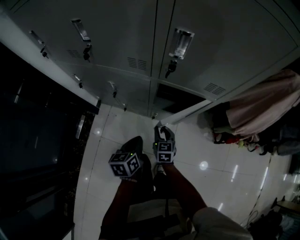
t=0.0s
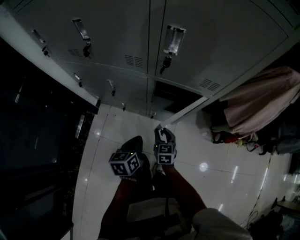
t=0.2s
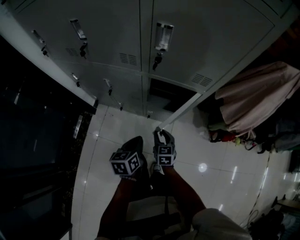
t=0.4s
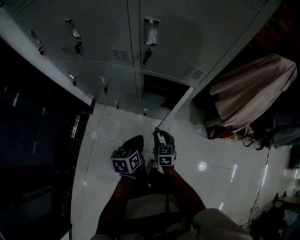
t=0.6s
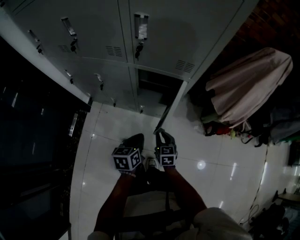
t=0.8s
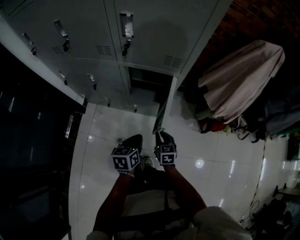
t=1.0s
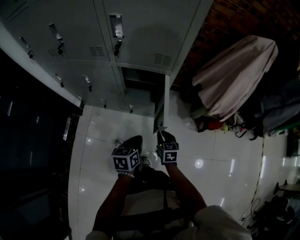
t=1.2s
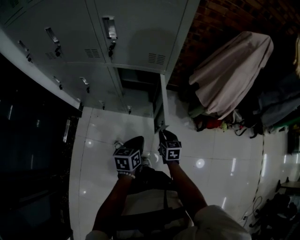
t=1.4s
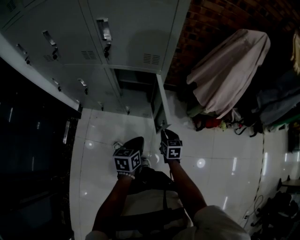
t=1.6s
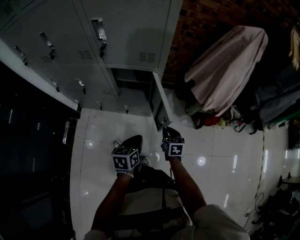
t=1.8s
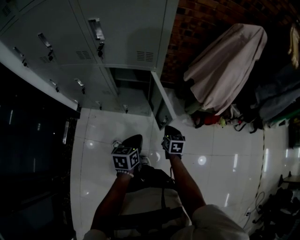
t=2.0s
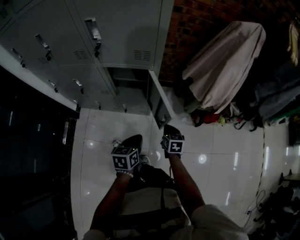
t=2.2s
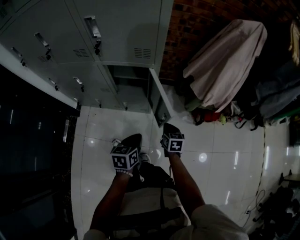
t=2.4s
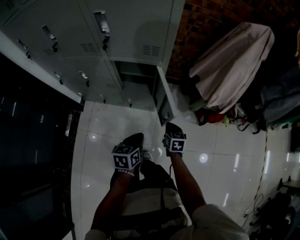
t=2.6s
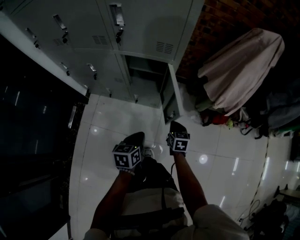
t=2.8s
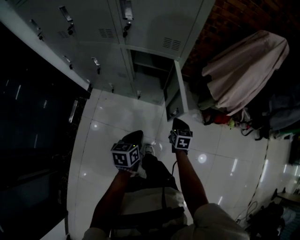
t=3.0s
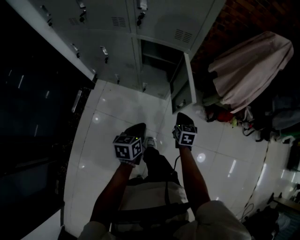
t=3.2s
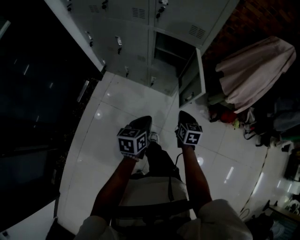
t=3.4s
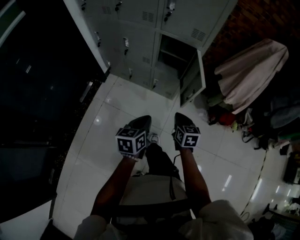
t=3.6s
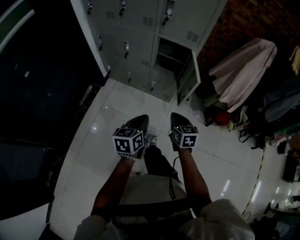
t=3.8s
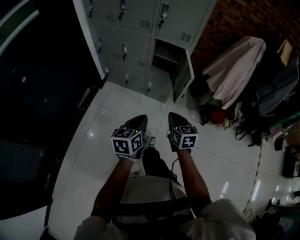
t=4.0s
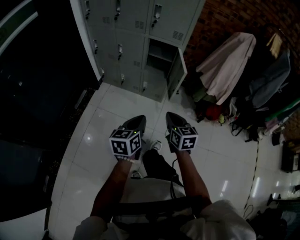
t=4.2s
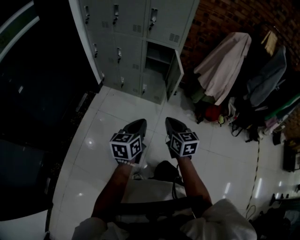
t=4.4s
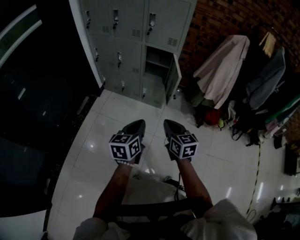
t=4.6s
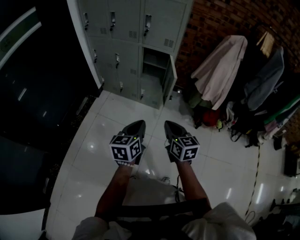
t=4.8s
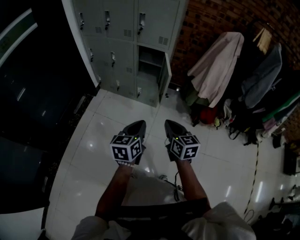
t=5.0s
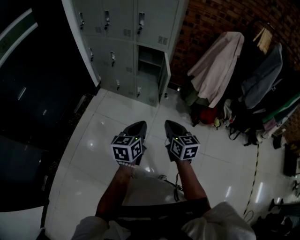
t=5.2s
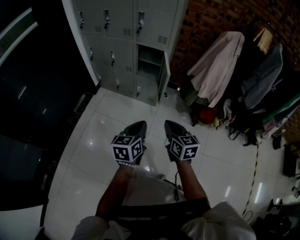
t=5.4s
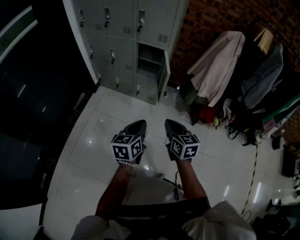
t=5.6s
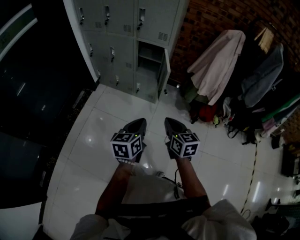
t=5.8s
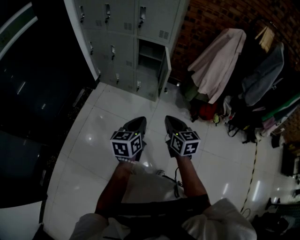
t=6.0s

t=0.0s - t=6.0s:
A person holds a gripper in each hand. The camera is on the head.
t=0.0s - t=1.6s: The grippers both shift to the right and backward by about 25 cm.
t=1.6s - t=3.0s: The left gripper goes approximately 5 cm backward.
t=3.0s - t=4.4s: The grippers both shift backward and upward by roughly 40 cm. The right gripper rotates approximately 30 degrees; the left gripper rotates roughly 20 degrees.
t=4.4s - t=6.0s: Both grippers move to the right, about 10 cm.

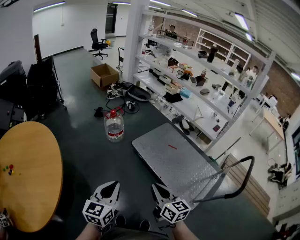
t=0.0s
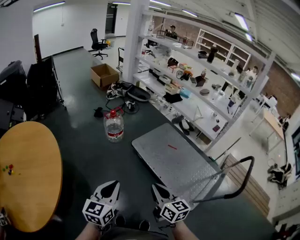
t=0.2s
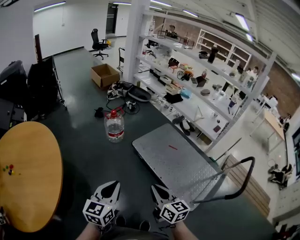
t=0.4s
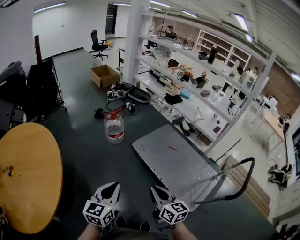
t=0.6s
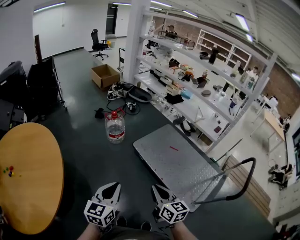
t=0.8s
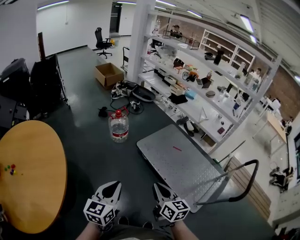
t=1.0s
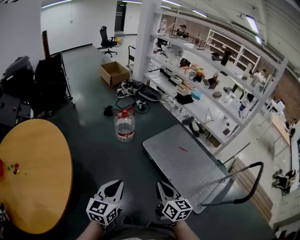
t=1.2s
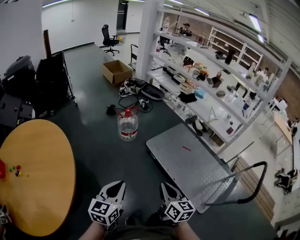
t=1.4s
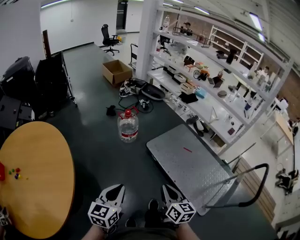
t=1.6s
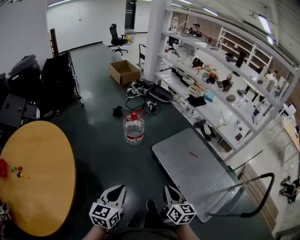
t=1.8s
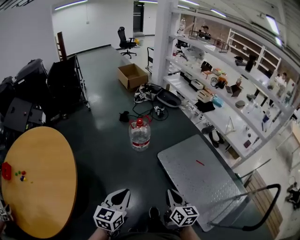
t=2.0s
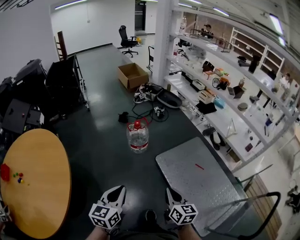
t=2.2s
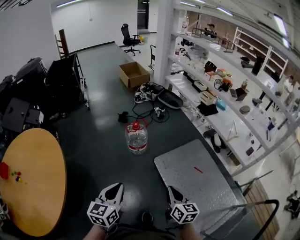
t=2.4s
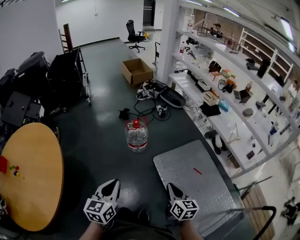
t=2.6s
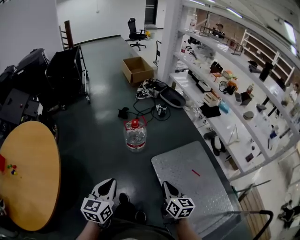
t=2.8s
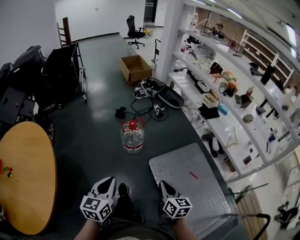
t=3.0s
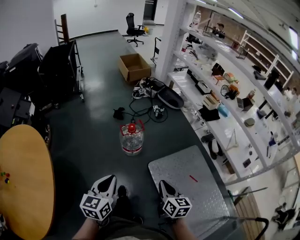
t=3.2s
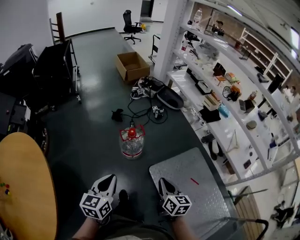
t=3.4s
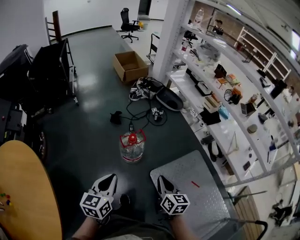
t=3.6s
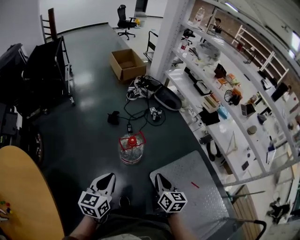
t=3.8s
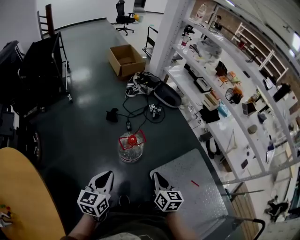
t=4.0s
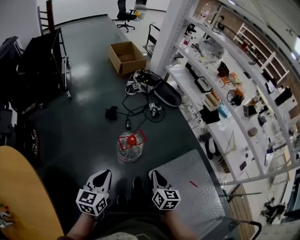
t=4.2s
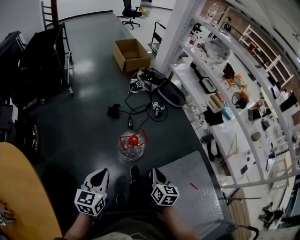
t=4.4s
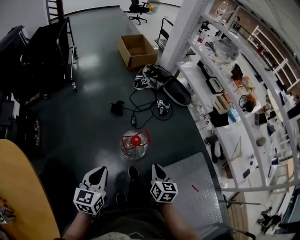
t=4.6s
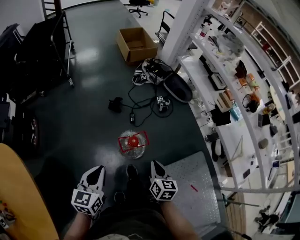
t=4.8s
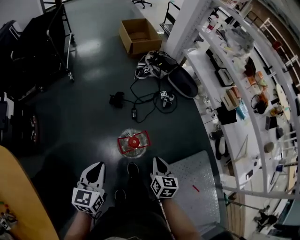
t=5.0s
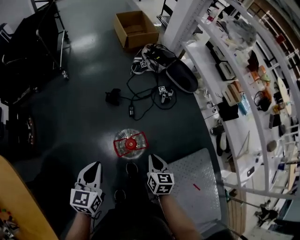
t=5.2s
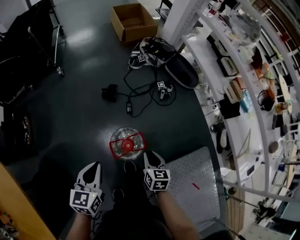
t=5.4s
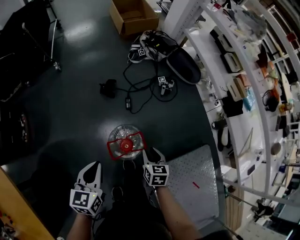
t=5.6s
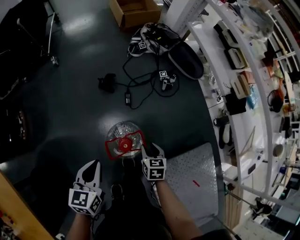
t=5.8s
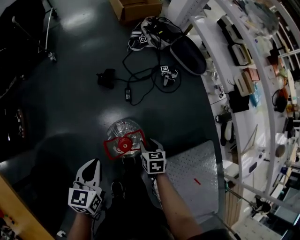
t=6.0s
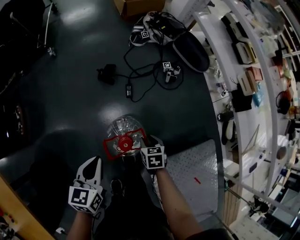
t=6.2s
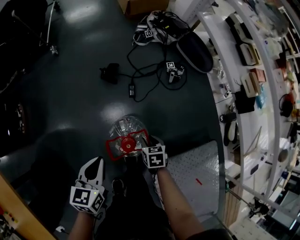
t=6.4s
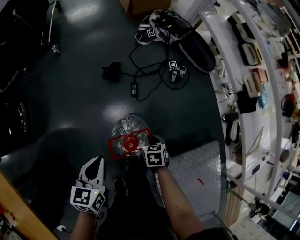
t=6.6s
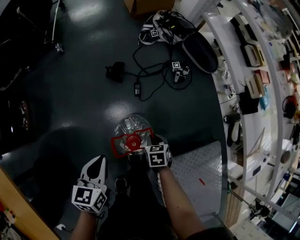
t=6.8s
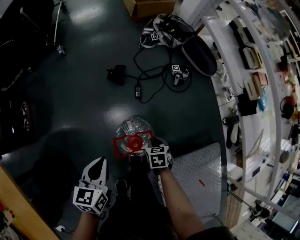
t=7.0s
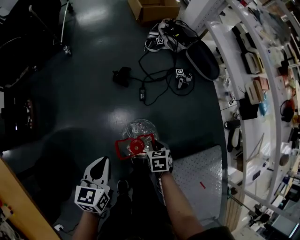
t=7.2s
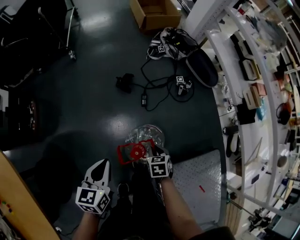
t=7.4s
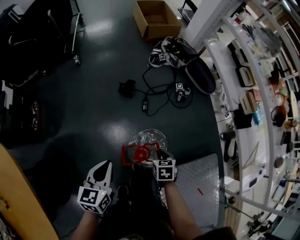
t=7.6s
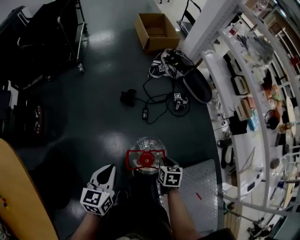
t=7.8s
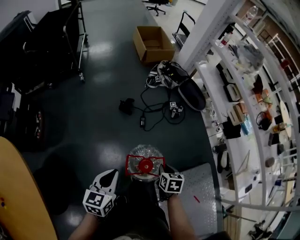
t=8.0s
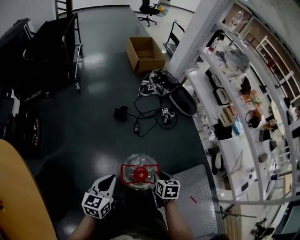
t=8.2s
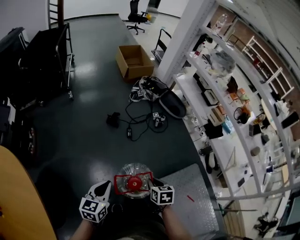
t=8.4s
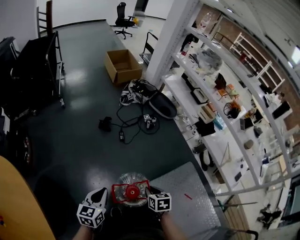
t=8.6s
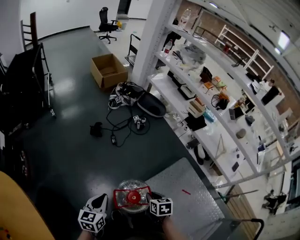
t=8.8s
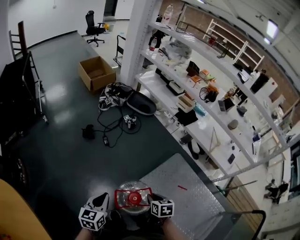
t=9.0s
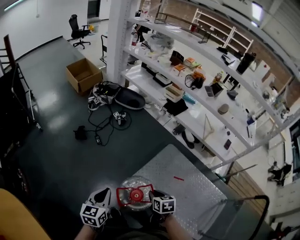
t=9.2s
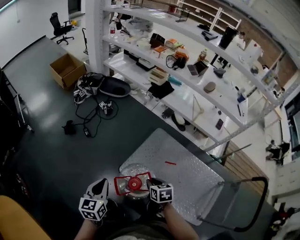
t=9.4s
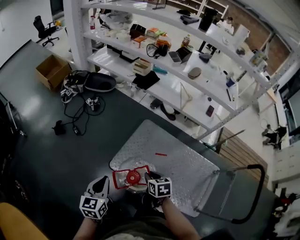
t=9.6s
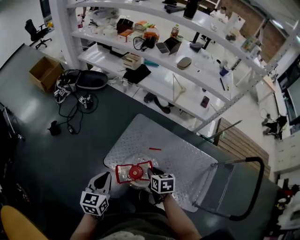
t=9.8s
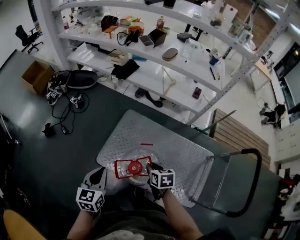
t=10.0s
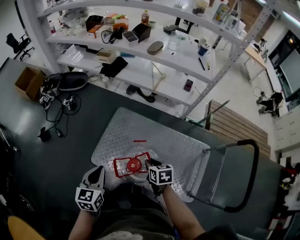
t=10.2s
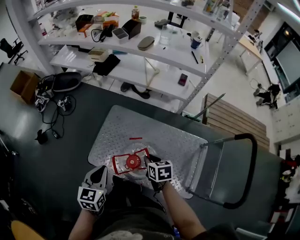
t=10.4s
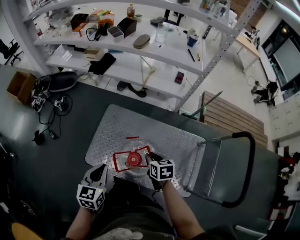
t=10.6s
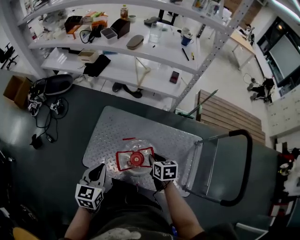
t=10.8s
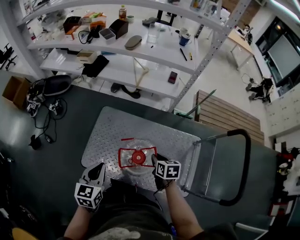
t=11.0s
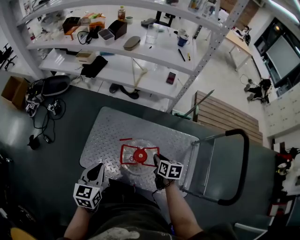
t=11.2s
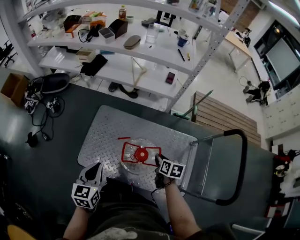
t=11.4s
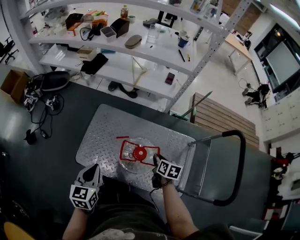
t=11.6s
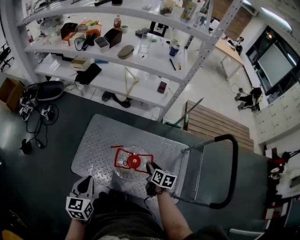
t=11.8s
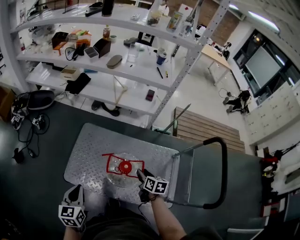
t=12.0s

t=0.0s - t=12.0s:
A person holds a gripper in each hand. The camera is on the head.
t=0.0s - t=1.6s: The left gripper moves to the left and forward, some 10 cm. The right gripper is displaced forward, to the left and downward by approximately 10 cm.
t=1.6s - t=3.0s: The grippers both shift forward by some 30 cm.
t=3.0s - t=4.4s: Both grippers move forward and to the left, about 35 cm.
t=4.4s - t=6.0s: The right gripper shifts some 40 cm downward and forward, changes its angle by about 30 degrees, and opens its fingers, while the left gripper moves forward and downward, about 30 cm.
t=6.0s - t=7.6s: The left gripper moves upward and to the left, about 10 cm, while the right gripper travels upward by some 10 cm.
t=7.6s - t=9.0s: The left gripper goes roughly 25 cm backward and to the right, and changes its angle by approximately 30 degrees. Meanwhile the right gripper goes about 40 cm backward, upward and to the right, and rotates roughly 30 degrees.
t=9.0s - t=10.4s: Both grippers are carried to the right, approximately 50 cm. The left gripper rotates roughly 30 degrees; the right gripper swivels some 30 degrees.
t=10.4s - t=12.0s: The right gripper heads to the right, covering approximately 15 cm, and changes its angle by roughly 30 degrees.

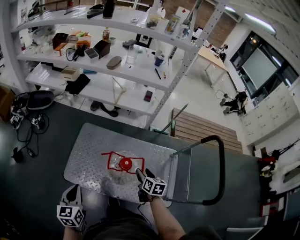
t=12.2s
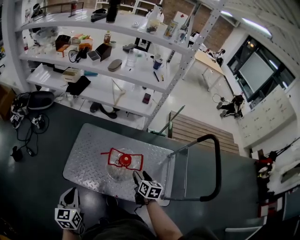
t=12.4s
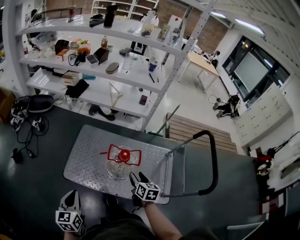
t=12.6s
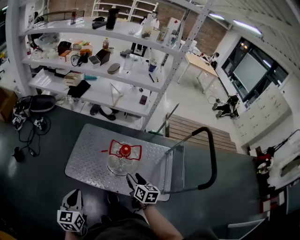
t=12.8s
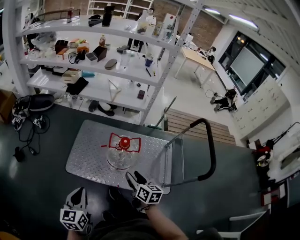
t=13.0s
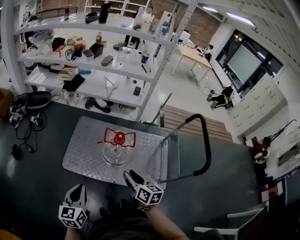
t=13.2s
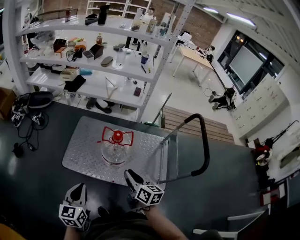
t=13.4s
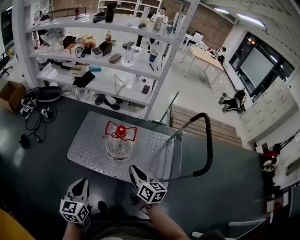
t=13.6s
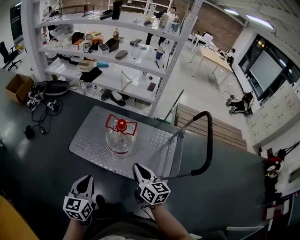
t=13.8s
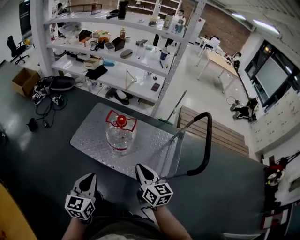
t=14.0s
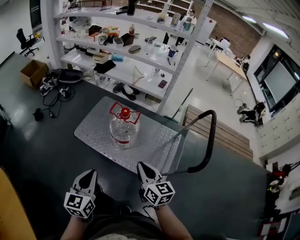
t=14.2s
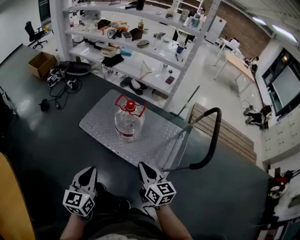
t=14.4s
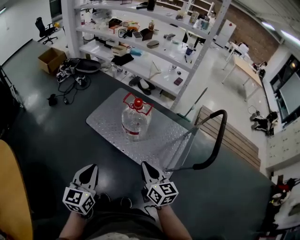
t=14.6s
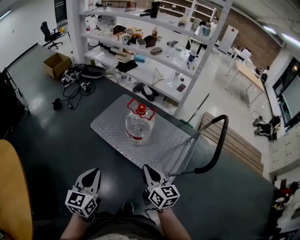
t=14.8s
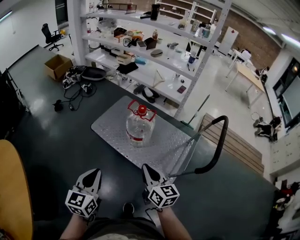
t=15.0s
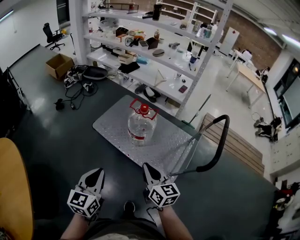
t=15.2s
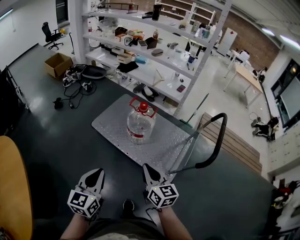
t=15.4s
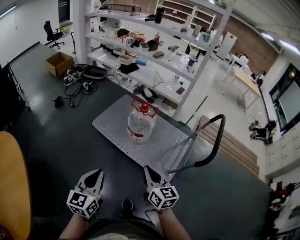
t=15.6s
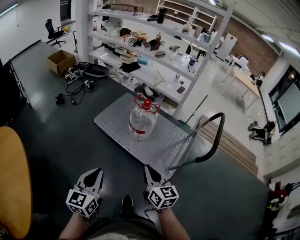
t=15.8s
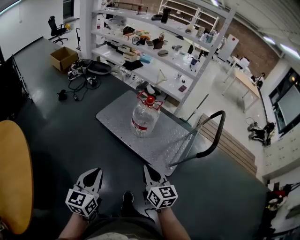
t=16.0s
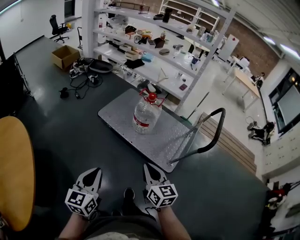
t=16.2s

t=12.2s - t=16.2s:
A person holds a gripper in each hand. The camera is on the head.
t=12.2s - t=13.6s: The right gripper shifts roughly 30 cm backward and upward, turns by some 30 degrees, and closes up. Meanwhile the left gripper heads backward, covering roughly 20 cm.
t=13.6s - t=14.8s: The right gripper shifts roughly 15 cm backward, and rotates approximately 20 degrees; the left gripper is displaced backward and to the right by approximately 25 cm.
t=14.8s - t=16.2s: Both grippers travel together backward and to the left, about 20 cm.

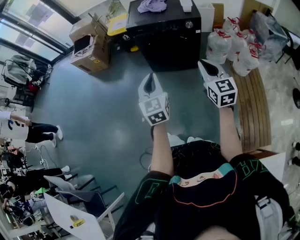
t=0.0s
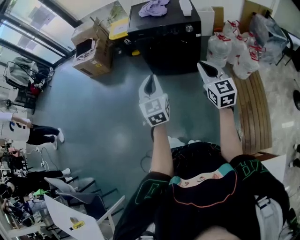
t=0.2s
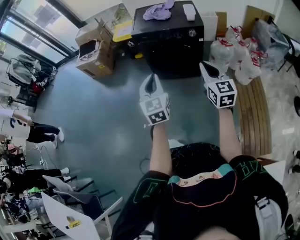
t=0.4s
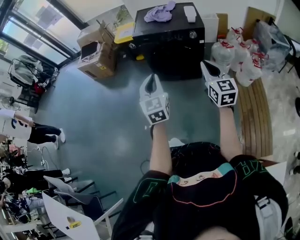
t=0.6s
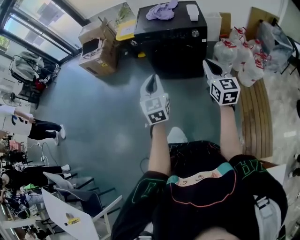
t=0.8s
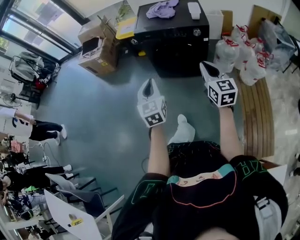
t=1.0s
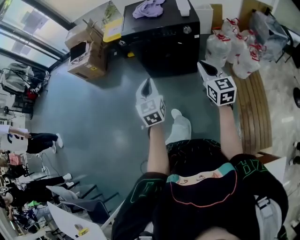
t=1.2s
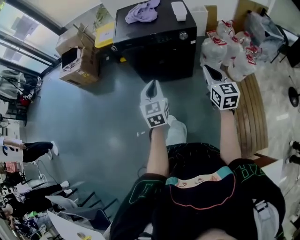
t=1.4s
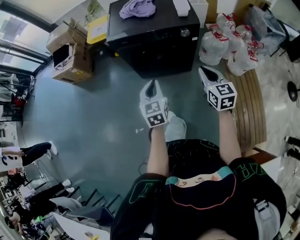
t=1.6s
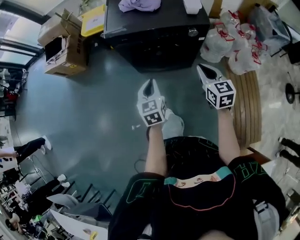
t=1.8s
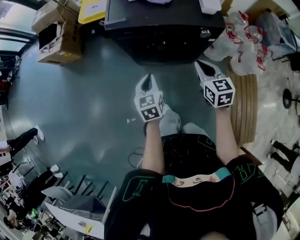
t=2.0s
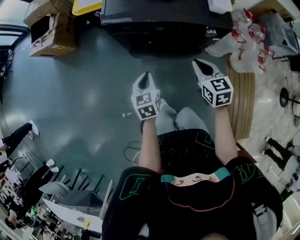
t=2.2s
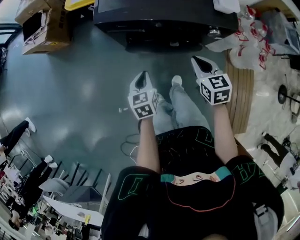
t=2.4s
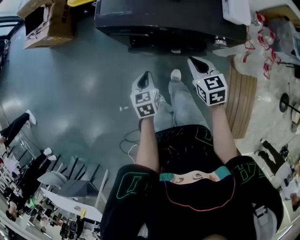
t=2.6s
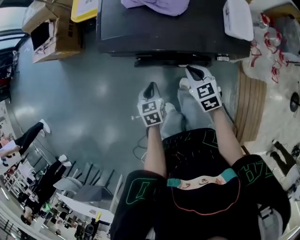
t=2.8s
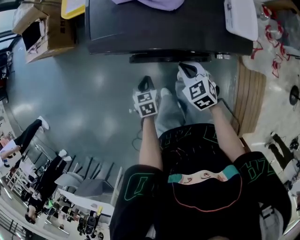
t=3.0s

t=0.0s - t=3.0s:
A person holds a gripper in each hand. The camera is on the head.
t=0.0s - t=1.6s: Both grippers move forward and downward, some 25 cm.
t=1.6s - t=3.0s: The left gripper goes about 35 cm downward and forward, and tips its fingers downward by approximately 30 degrees. The right gripper shifts approximately 35 cm forward and downward, and turns by roughly 40 degrees.
